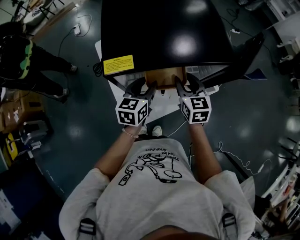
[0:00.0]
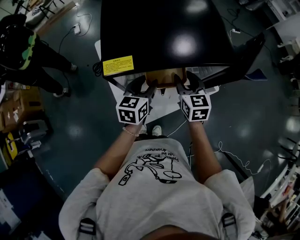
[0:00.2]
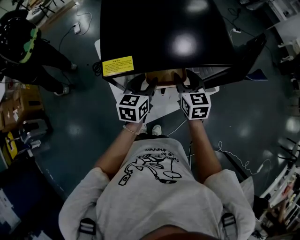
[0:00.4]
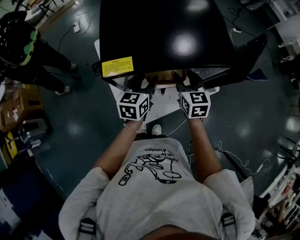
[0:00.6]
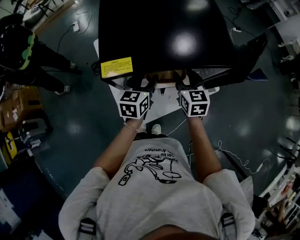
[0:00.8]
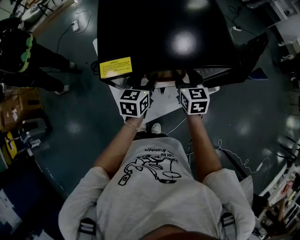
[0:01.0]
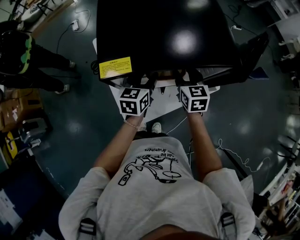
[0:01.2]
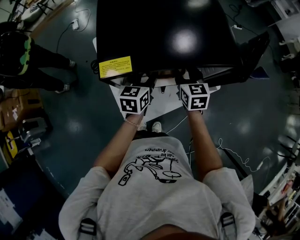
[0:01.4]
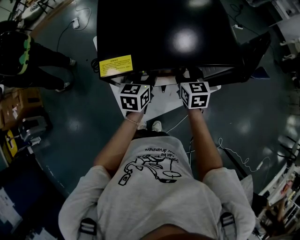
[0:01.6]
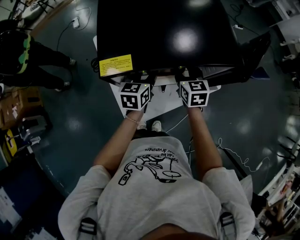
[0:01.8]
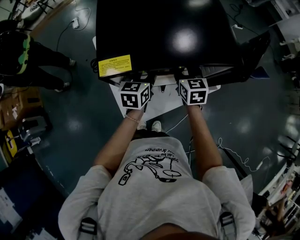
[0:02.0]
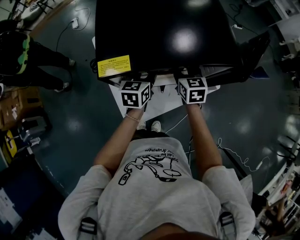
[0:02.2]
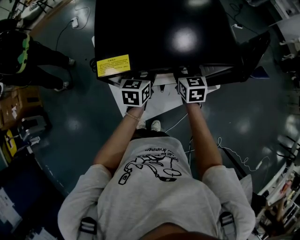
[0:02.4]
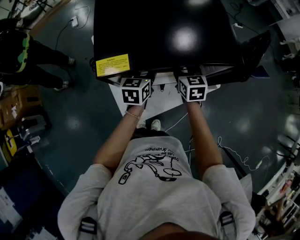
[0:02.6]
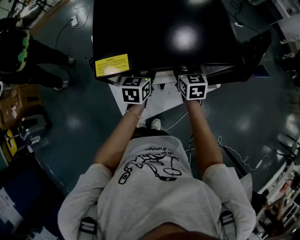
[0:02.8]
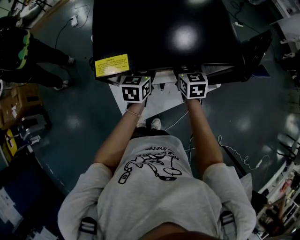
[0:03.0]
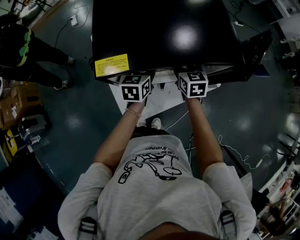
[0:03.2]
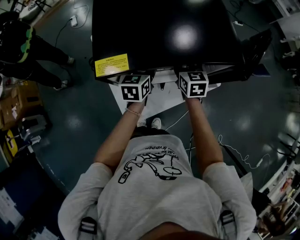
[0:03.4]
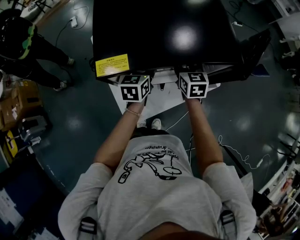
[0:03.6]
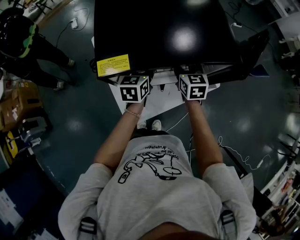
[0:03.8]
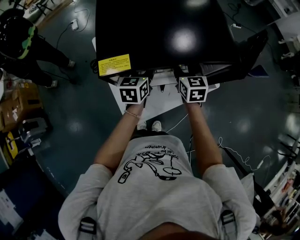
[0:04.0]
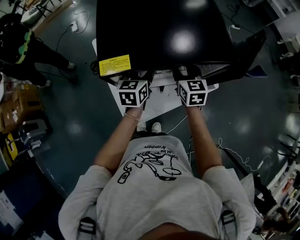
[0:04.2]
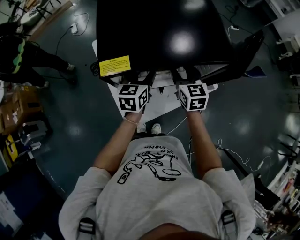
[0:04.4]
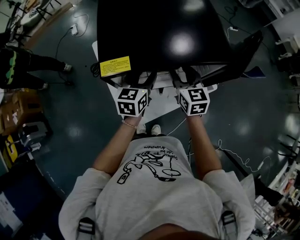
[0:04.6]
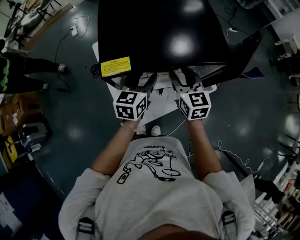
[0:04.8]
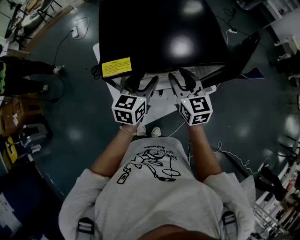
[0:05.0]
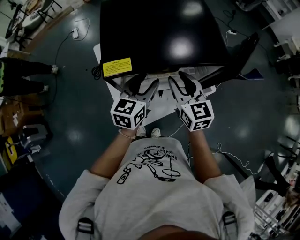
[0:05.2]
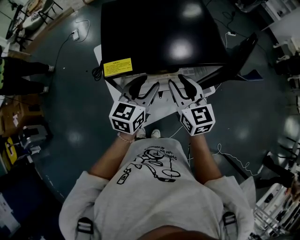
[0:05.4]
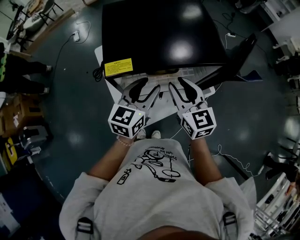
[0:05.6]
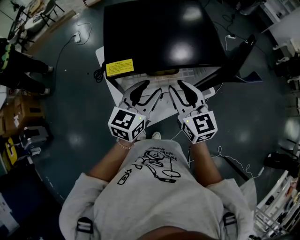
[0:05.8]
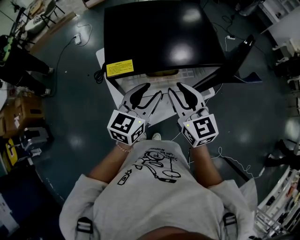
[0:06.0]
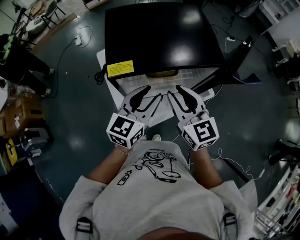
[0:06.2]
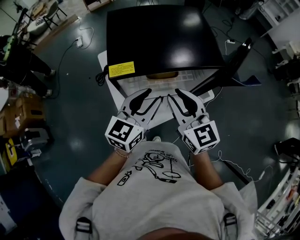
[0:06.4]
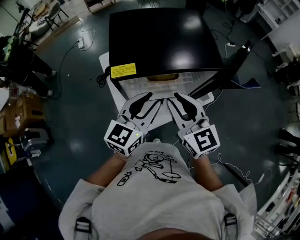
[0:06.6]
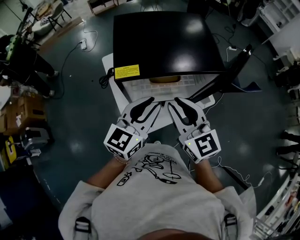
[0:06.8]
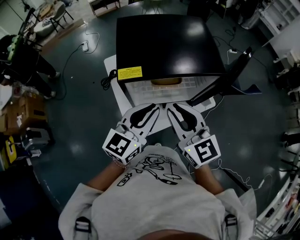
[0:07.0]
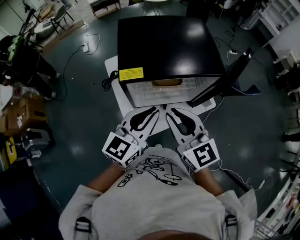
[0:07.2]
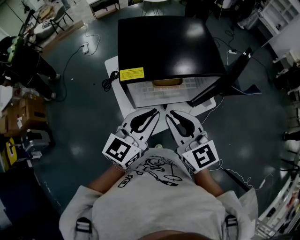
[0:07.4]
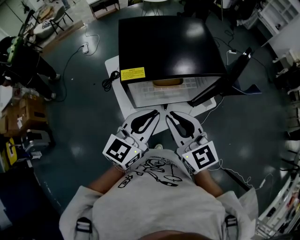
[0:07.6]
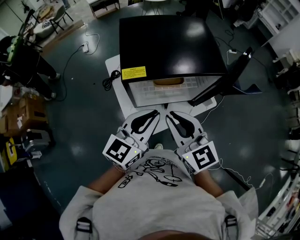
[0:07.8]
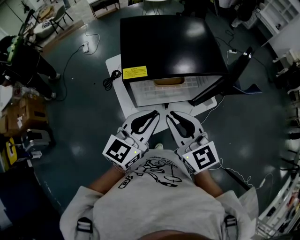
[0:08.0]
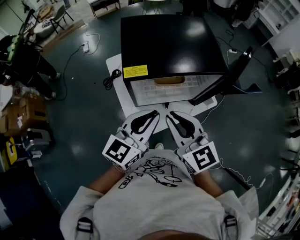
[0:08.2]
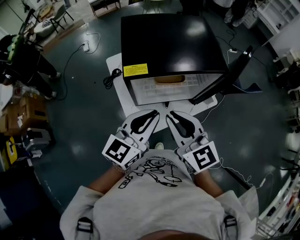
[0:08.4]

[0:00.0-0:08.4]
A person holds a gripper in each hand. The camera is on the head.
0:00.0 to 0:01.4: The right gripper travels forward by some 5 cm. The left gripper shifts by about 5 cm.
0:01.4 to 0:04.2: The grippers make only small movements.
0:04.2 to 0:05.6: The grippers both shift upward and backward by some 15 cm.
0:05.6 to 0:07.0: The two grippers go some 10 cm backward and upward. The left gripper closes.
0:07.0 to 0:08.4: The grippers move only a little.

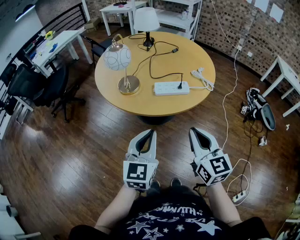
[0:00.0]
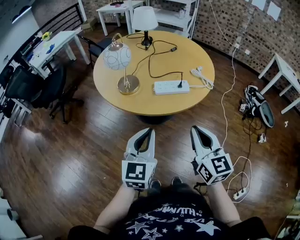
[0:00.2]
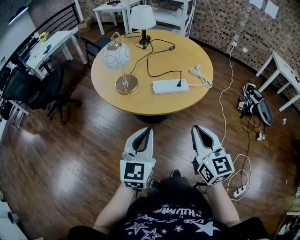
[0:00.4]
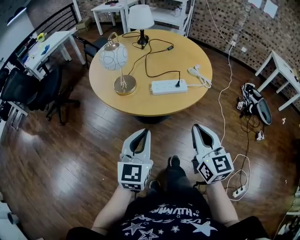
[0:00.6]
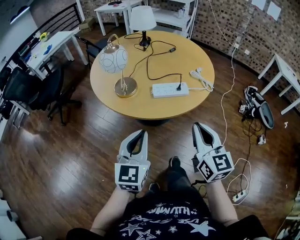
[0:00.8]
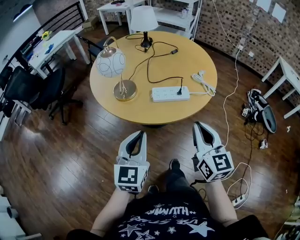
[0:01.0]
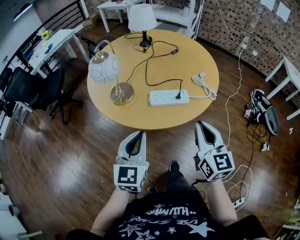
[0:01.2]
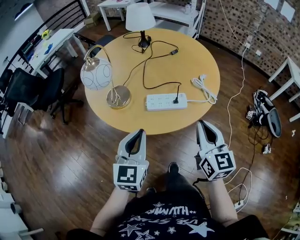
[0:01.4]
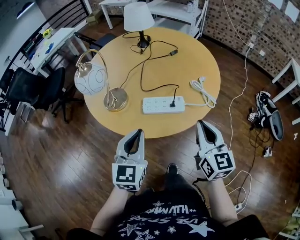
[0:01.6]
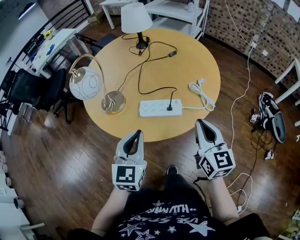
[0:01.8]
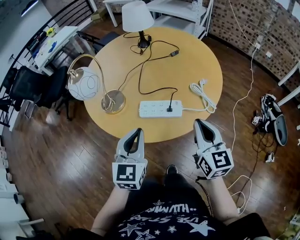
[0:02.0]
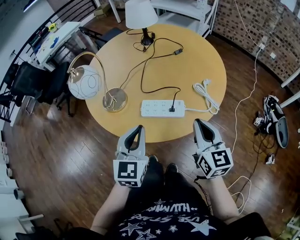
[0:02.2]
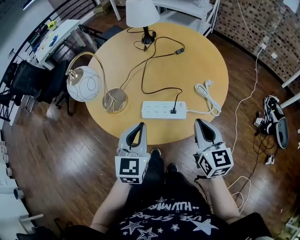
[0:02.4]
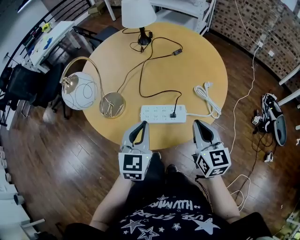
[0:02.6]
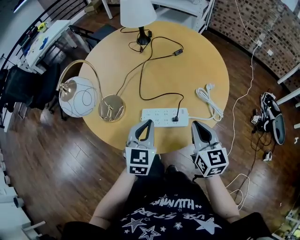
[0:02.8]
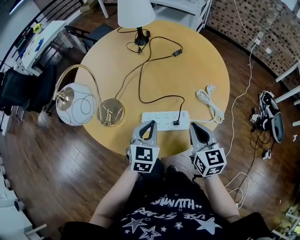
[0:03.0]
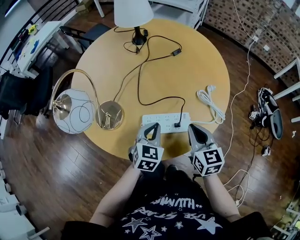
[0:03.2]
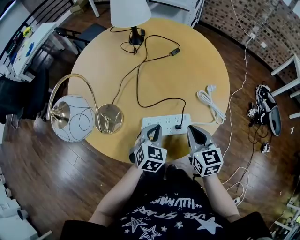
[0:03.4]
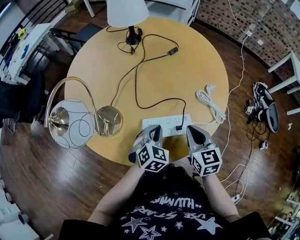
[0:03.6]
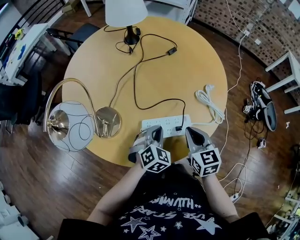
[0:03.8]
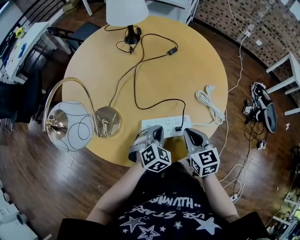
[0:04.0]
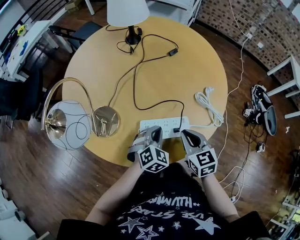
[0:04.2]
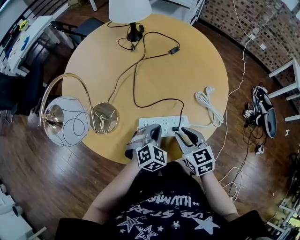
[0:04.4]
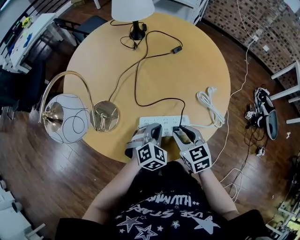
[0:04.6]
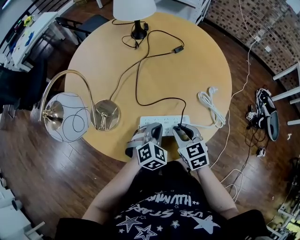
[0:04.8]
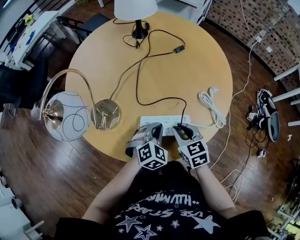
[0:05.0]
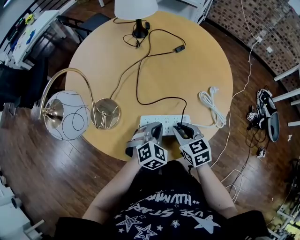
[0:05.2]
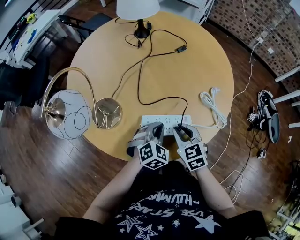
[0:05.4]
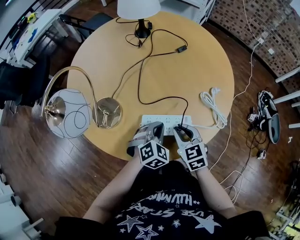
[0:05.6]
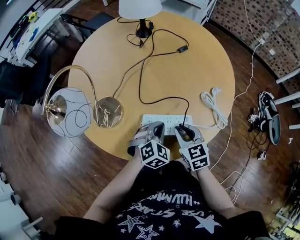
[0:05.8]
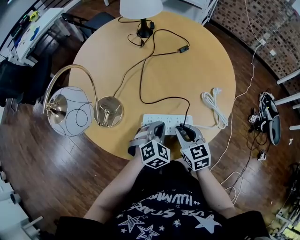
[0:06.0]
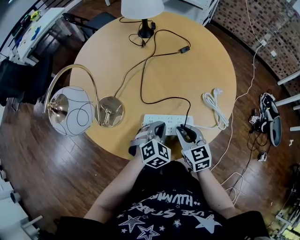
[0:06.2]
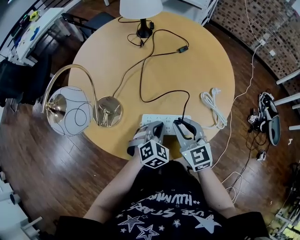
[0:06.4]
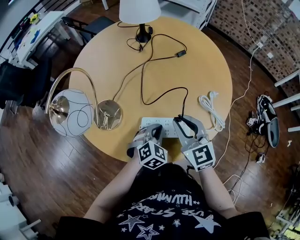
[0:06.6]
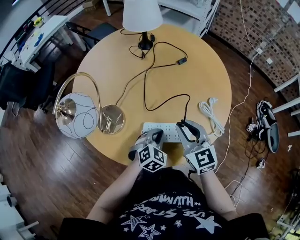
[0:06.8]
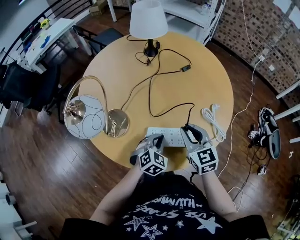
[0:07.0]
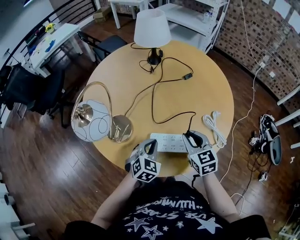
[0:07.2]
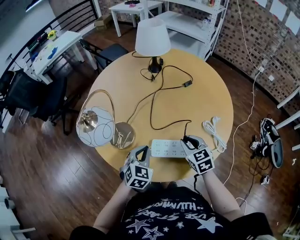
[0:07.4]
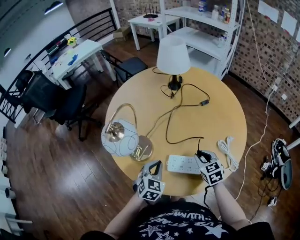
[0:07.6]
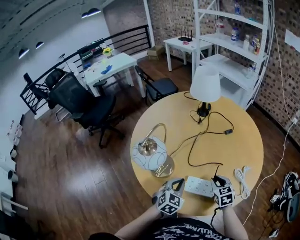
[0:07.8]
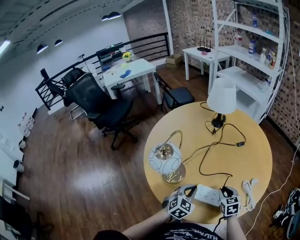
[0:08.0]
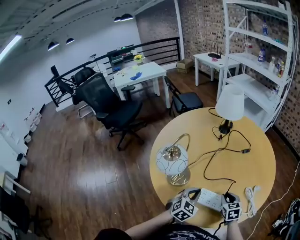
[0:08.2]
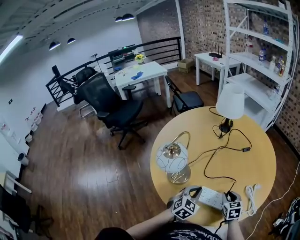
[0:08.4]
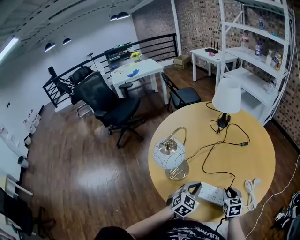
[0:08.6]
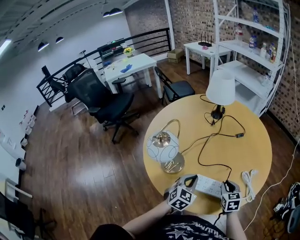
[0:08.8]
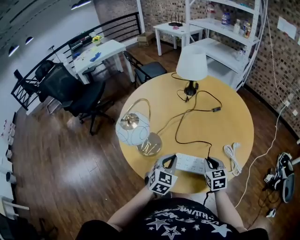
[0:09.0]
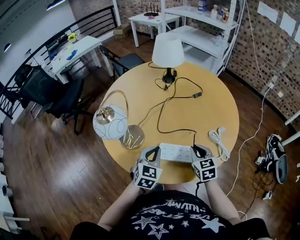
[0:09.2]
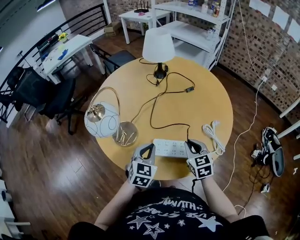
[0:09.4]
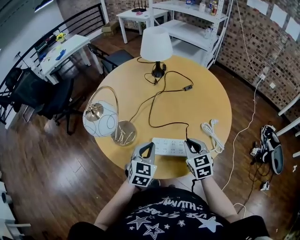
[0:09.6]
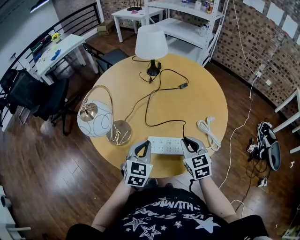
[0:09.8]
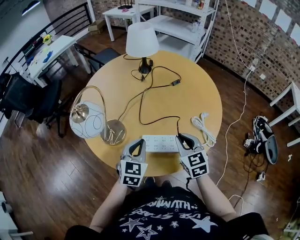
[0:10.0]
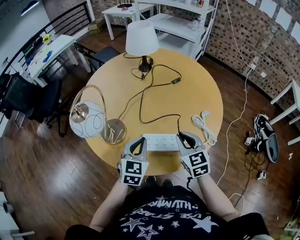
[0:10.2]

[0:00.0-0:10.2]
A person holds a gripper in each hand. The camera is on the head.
0:00.0 to 0:01.4: The left gripper shifts about 10 cm forward; the right gripper is displaced forward and to the right by approximately 15 cm.
0:01.4 to 0:03.0: Both grippers move forward and downward, about 20 cm.
0:03.0 to 0:04.4: Both grippers move downward, some 10 cm. The left gripper changes its angle by roughly 30 degrees. Meanwhile the right gripper opens its fingers.
0:04.4 to 0:05.8: The grippers stay close to where they were, moving slightly.
0:05.8 to 0:07.2: The right gripper heads upward, covering roughly 5 cm, while the left gripper moves to the left, about 5 cm.
0:07.2 to 0:08.8: The left gripper ends up roughly 5 cm from where it was. Meanwhile the right gripper heads downward, covering about 5 cm.
0:08.8 to 0:10.2: The right gripper travels upward by approximately 10 cm. The left gripper changes place by about 5 cm.

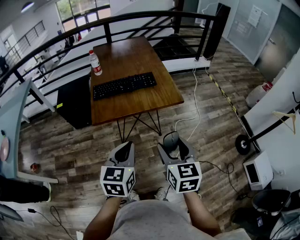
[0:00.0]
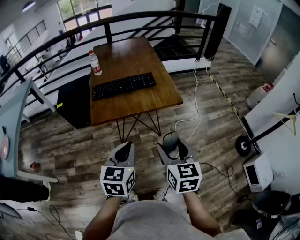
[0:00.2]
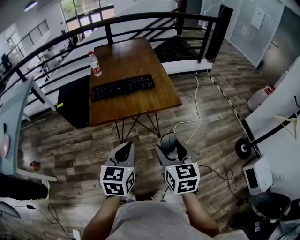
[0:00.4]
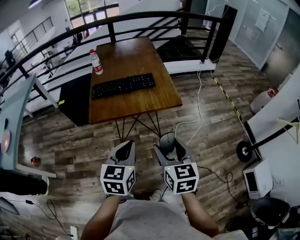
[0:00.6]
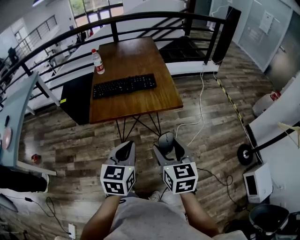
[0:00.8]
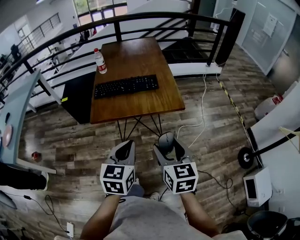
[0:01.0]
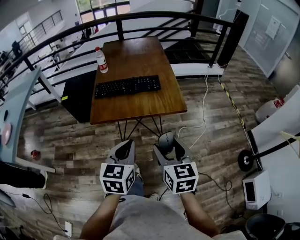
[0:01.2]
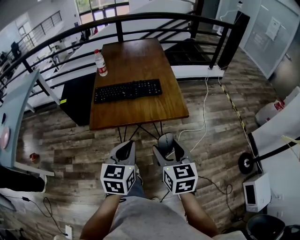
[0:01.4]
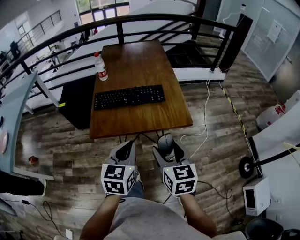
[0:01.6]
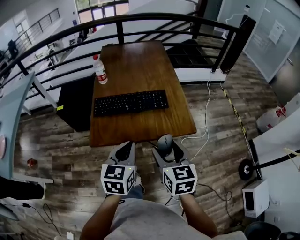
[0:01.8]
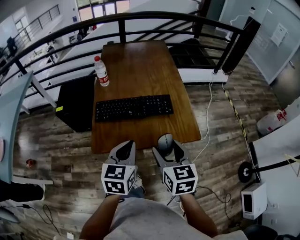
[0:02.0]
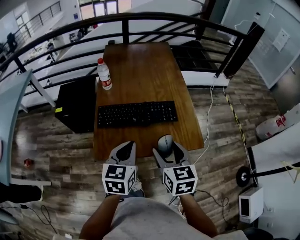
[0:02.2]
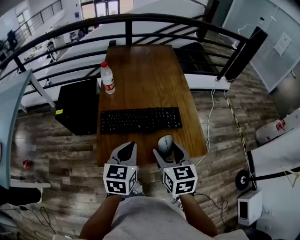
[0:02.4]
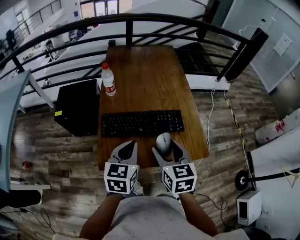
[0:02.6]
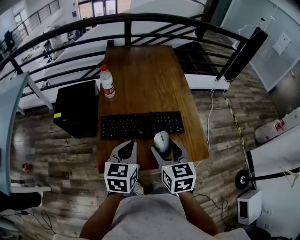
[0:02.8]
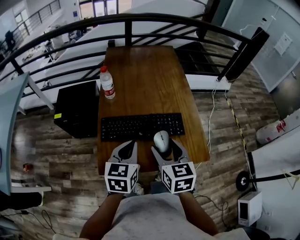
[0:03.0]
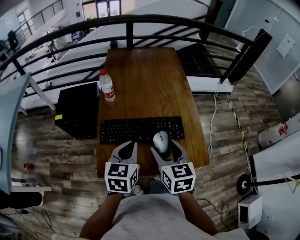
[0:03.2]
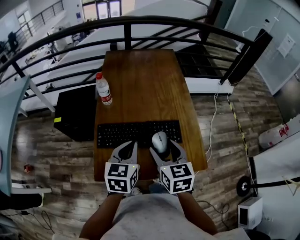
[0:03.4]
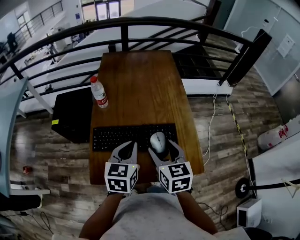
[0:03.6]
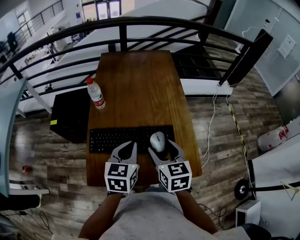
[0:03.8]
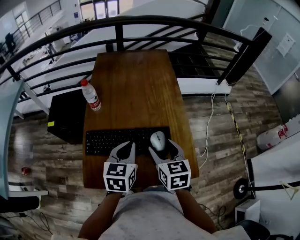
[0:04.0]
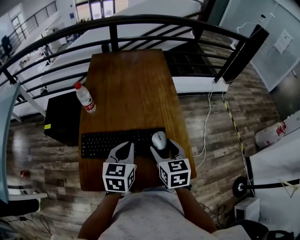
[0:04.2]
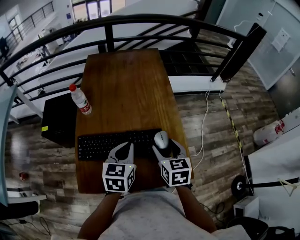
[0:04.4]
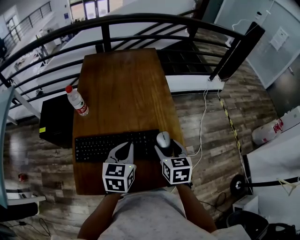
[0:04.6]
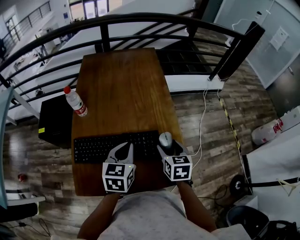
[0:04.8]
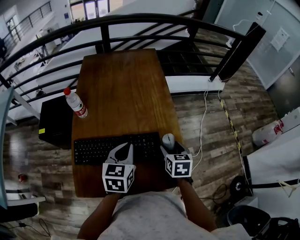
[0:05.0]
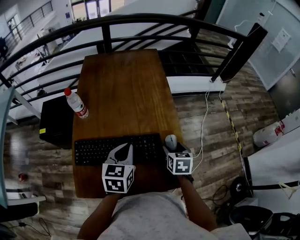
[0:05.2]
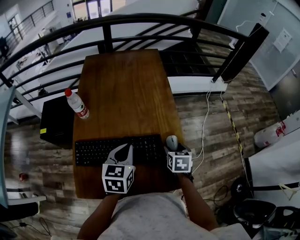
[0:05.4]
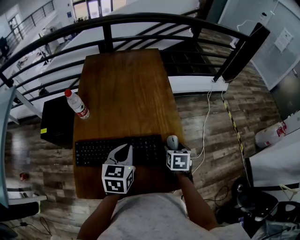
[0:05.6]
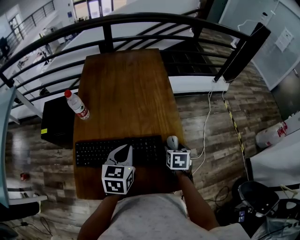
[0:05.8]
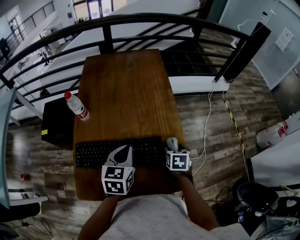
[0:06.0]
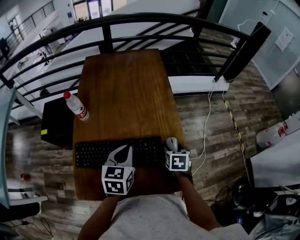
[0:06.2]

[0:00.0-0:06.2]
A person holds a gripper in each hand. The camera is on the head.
0:00.0 to 0:01.6: Both grippers travel together forward, about 15 cm.
0:01.6 to 0:03.2: The left gripper shifts about 30 cm forward. The right gripper goes roughly 30 cm forward and to the left.
0:03.2 to 0:04.6: The left gripper is displaced to the right and forward by approximately 15 cm; the right gripper moves to the right, forward and downward, about 20 cm.
0:04.6 to 0:06.2: The right gripper travels downward, to the right and forward by some 15 cm, and changes its angle by about 20 degrees.
